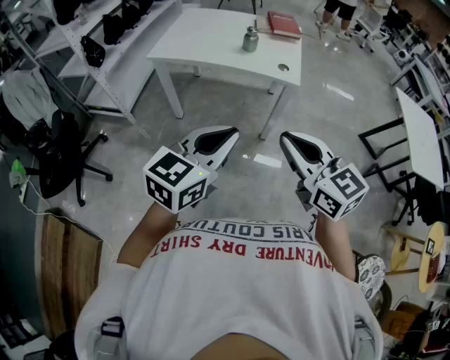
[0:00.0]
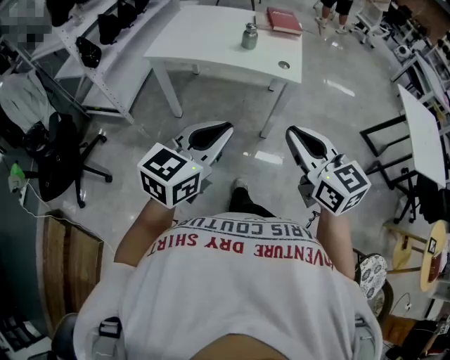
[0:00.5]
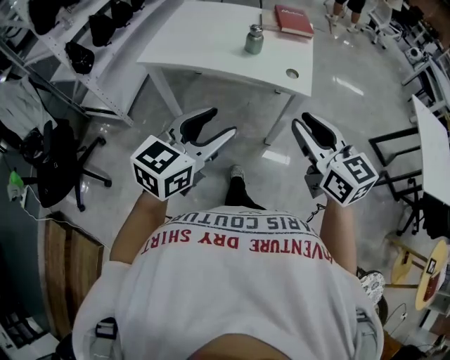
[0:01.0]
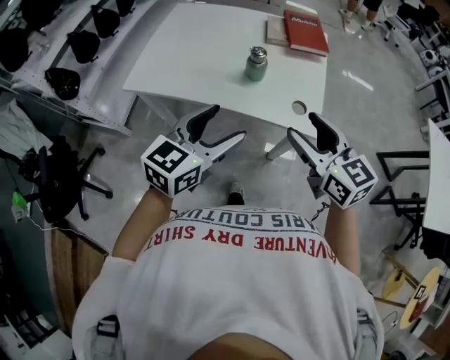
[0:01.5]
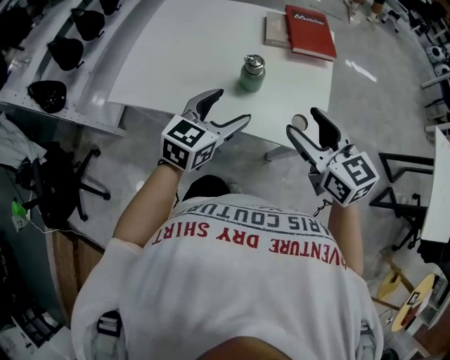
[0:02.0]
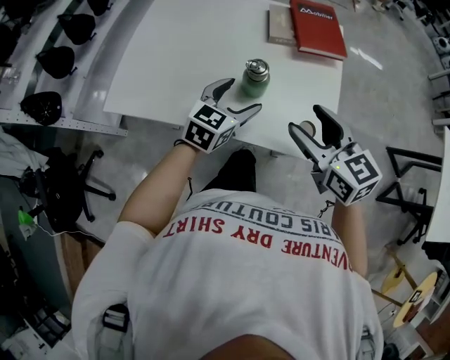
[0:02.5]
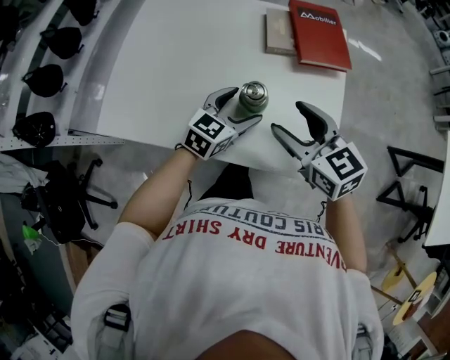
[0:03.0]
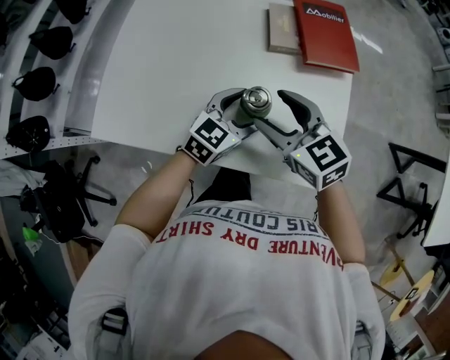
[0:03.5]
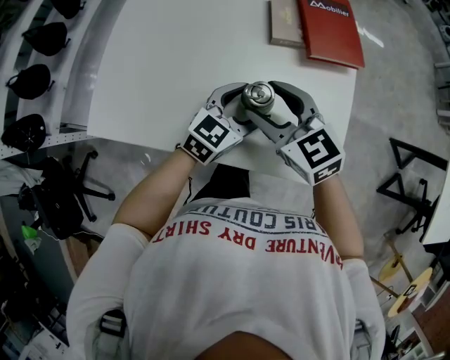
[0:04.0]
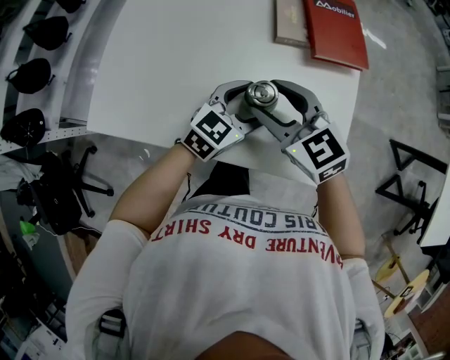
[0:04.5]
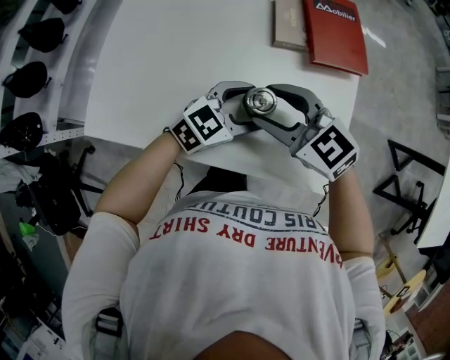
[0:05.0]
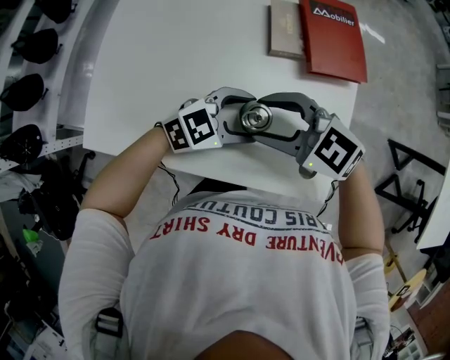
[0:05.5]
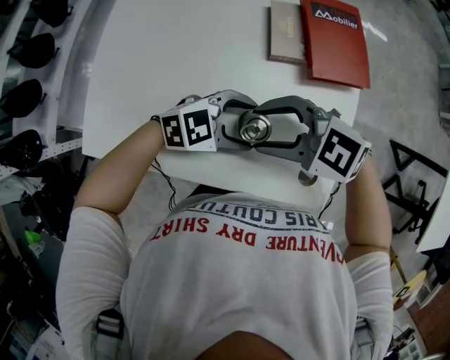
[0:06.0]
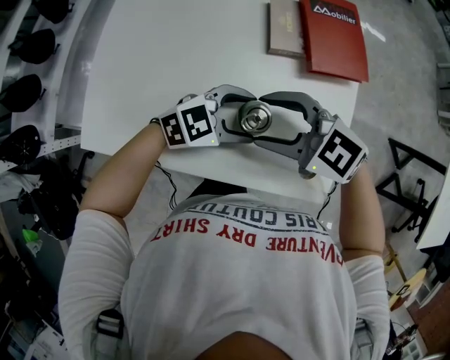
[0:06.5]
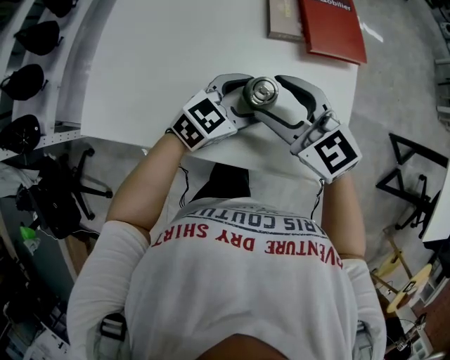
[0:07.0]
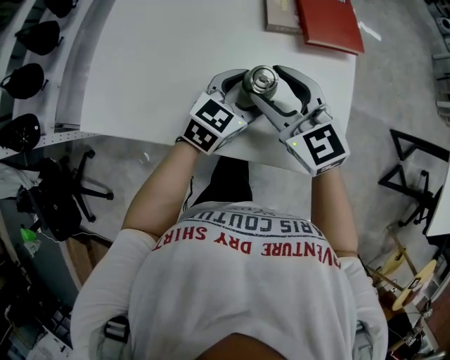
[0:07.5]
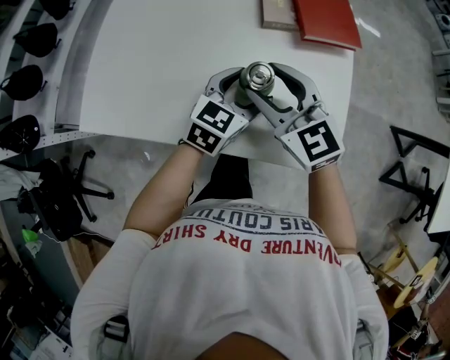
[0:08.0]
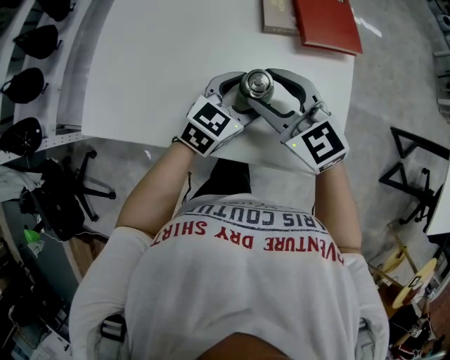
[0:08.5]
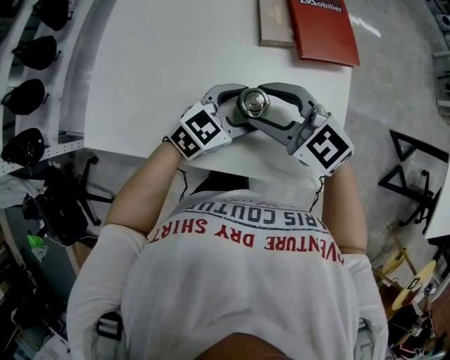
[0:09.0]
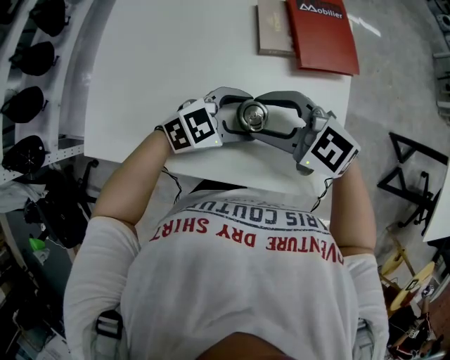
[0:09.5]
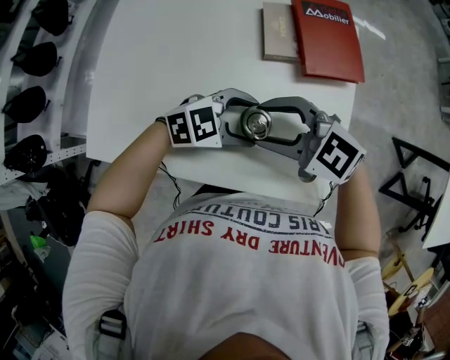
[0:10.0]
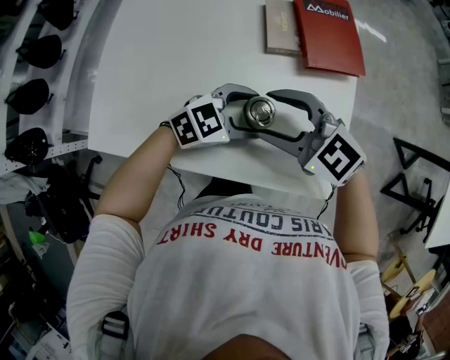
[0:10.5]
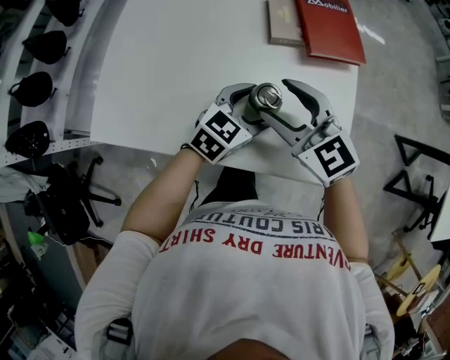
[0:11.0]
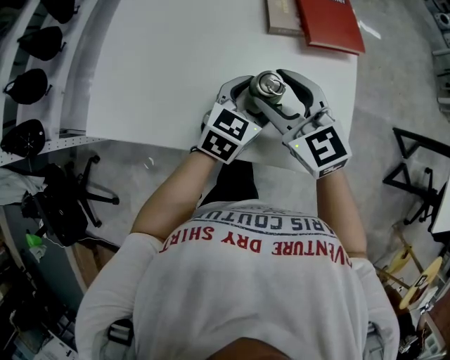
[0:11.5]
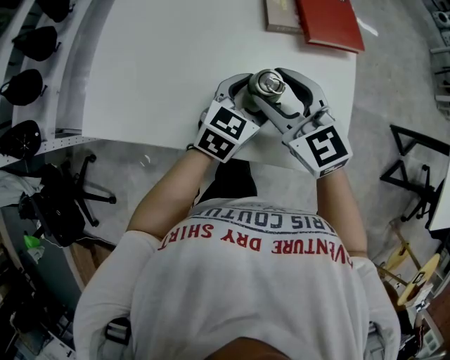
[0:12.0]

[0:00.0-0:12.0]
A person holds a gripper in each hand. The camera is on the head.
0:00.0 to 0:02.0: Both grippers are carried forward, roughly 50 cm. The right gripper opens; the left gripper opens up.
0:02.0 to 0:04.0: The left gripper moves forward and downward, approximately 20 cm. Meanwhile the right gripper heads forward, to the left and downward, covering roughly 20 cm.
0:04.0 to 0:06.0: The right gripper changes its angle by approximately 40 degrees; the left gripper changes its angle by approximately 40 degrees.
0:06.0 to 0:08.0: The left gripper swivels roughly 50 degrees; the right gripper swivels about 50 degrees.
0:08.0 to 0:10.0: The right gripper turns by about 40 degrees; the left gripper turns by some 50 degrees.
0:10.0 to 0:12.0: The right gripper rotates roughly 40 degrees. Meanwhile the left gripper changes its angle by roughly 50 degrees.

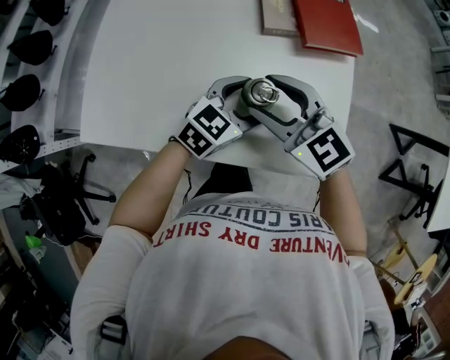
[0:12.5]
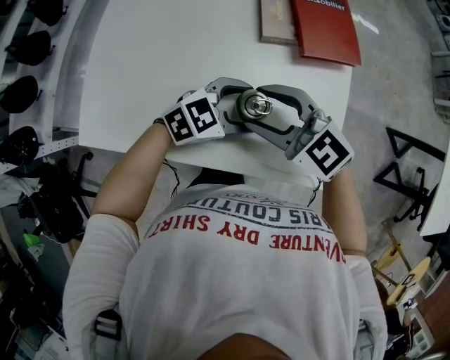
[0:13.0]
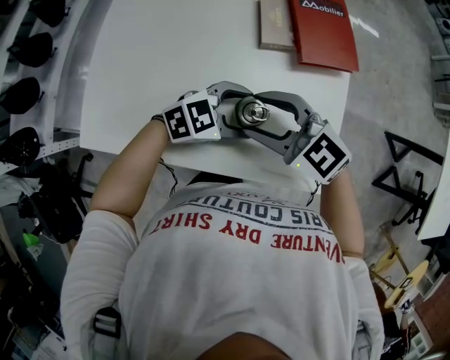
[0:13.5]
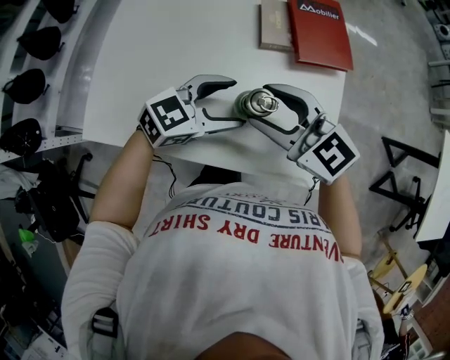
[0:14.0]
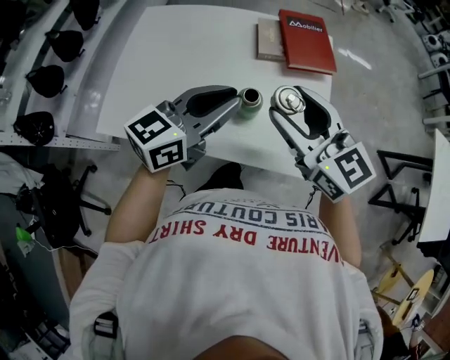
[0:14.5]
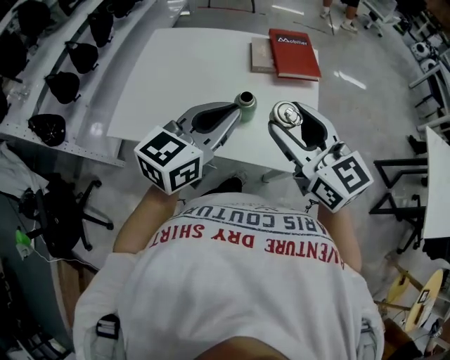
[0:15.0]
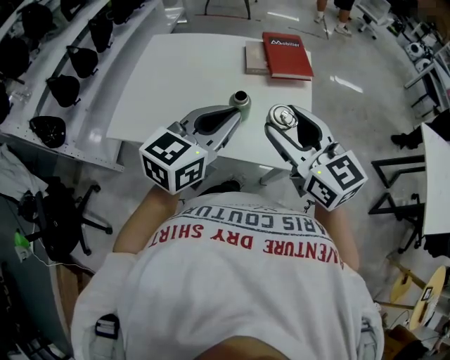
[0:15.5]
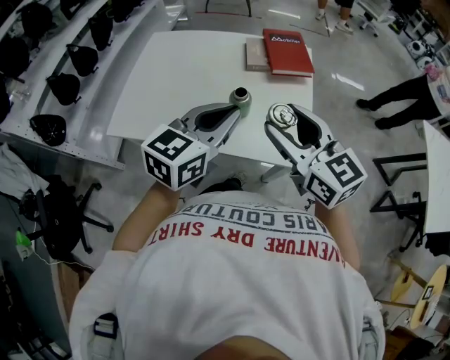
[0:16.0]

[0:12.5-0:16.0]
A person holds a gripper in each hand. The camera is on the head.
0:12.5 to 0:14.5: Both grippers move upward, about 15 cm. The left gripper changes its angle by about 30 degrees, and closes.
0:14.5 to 0:16.0: Both grippers travel together backward, approximately 10 cm.

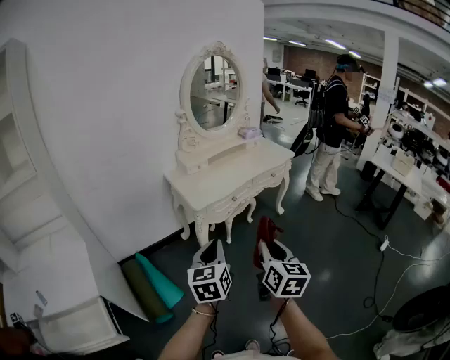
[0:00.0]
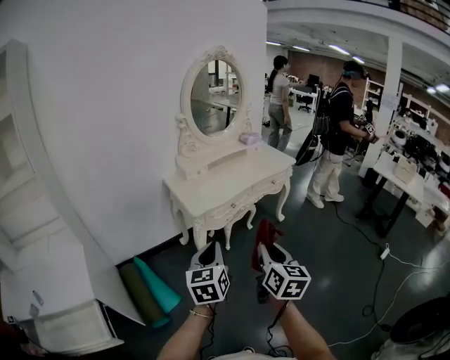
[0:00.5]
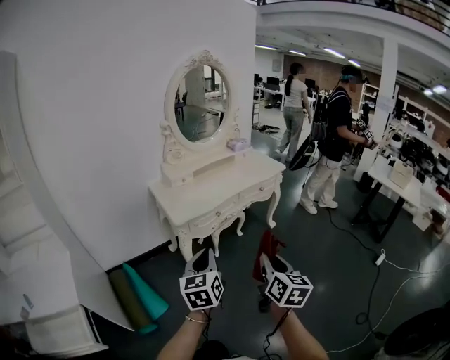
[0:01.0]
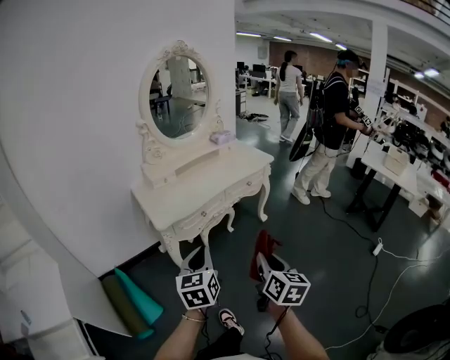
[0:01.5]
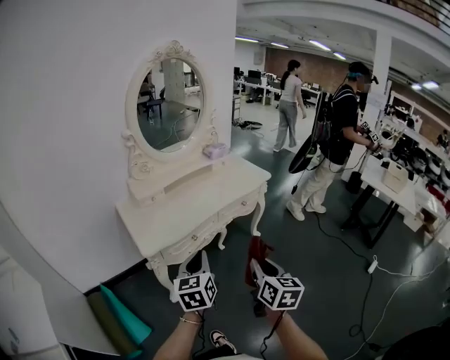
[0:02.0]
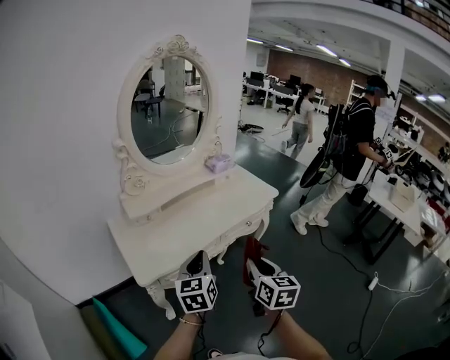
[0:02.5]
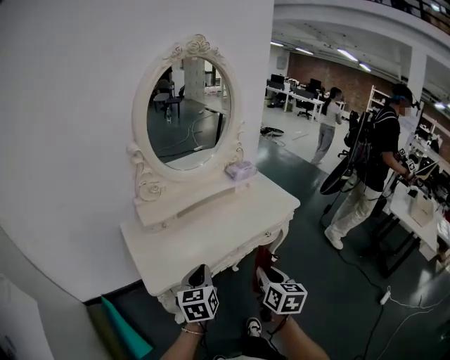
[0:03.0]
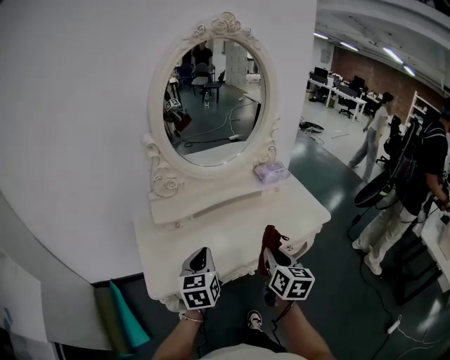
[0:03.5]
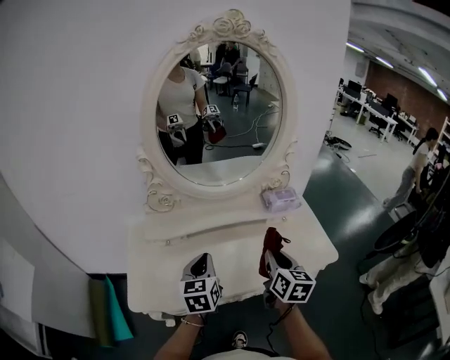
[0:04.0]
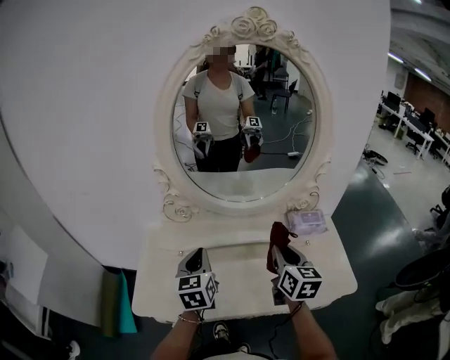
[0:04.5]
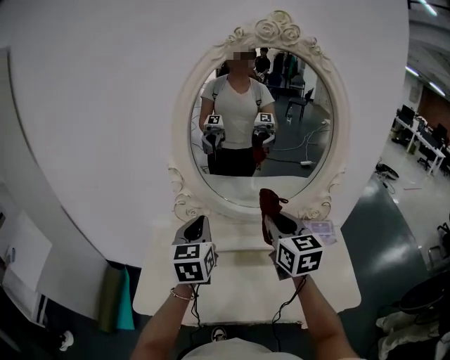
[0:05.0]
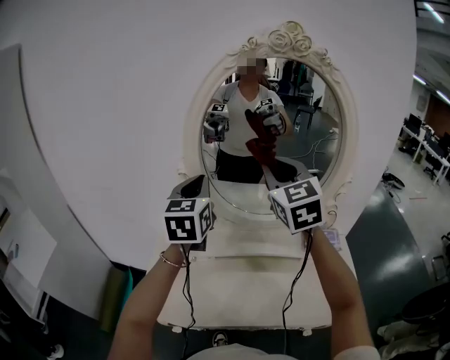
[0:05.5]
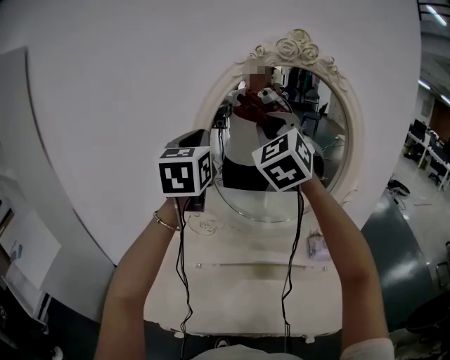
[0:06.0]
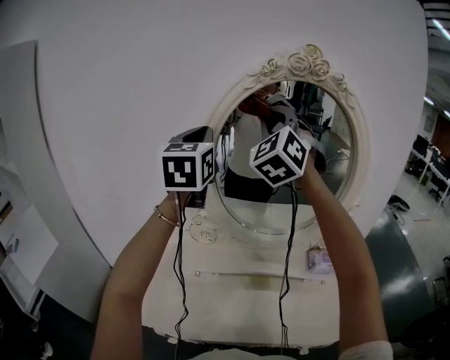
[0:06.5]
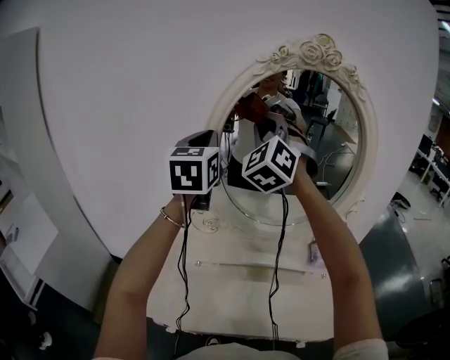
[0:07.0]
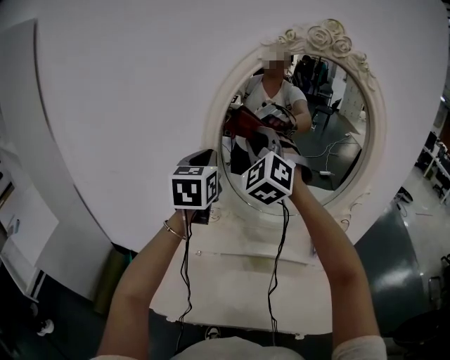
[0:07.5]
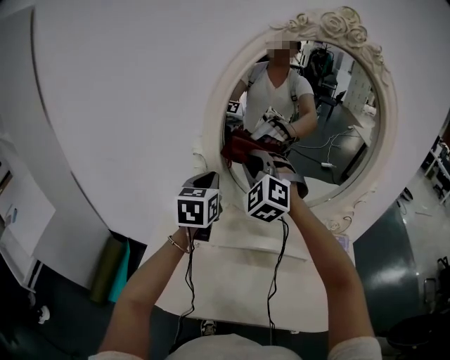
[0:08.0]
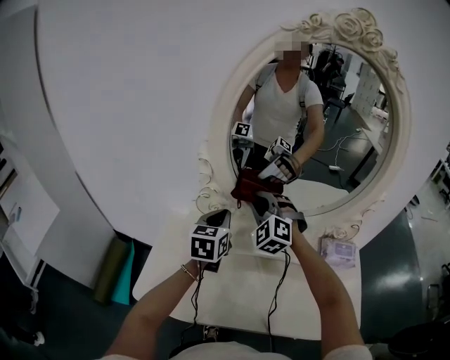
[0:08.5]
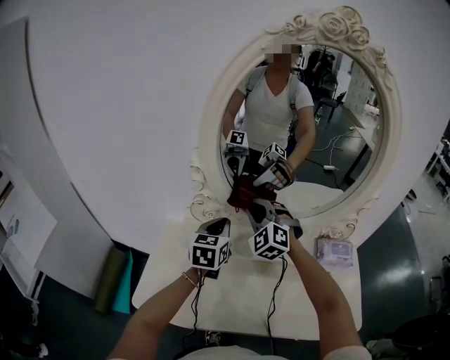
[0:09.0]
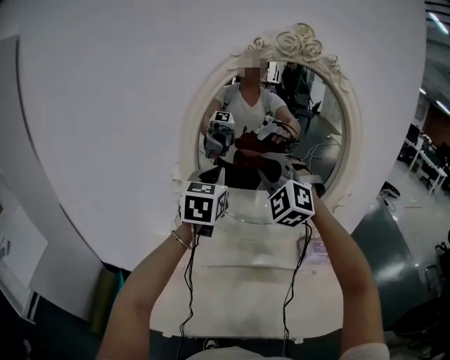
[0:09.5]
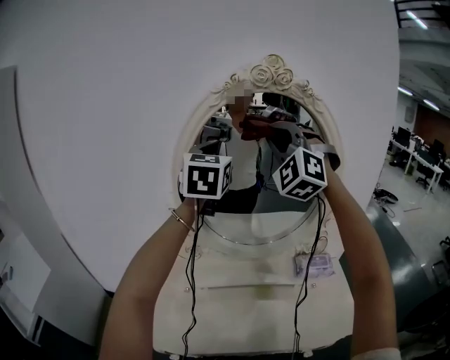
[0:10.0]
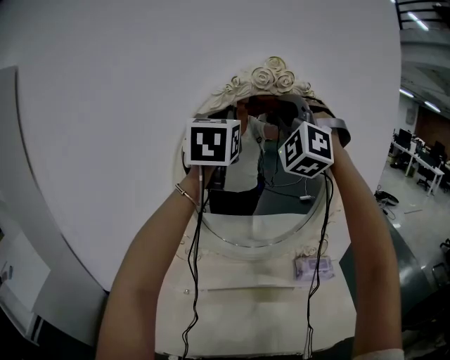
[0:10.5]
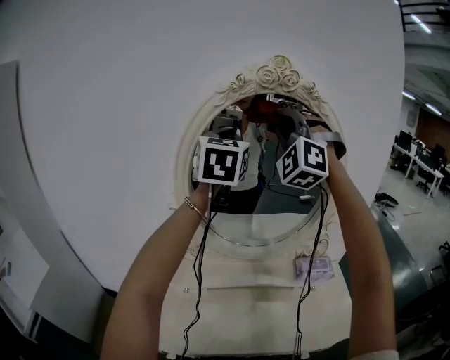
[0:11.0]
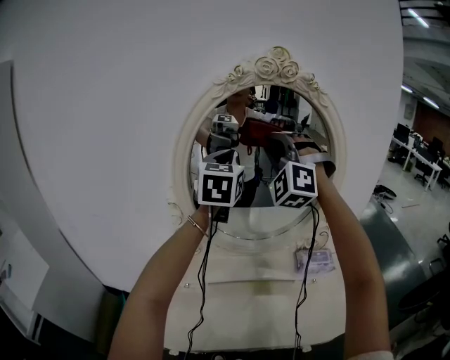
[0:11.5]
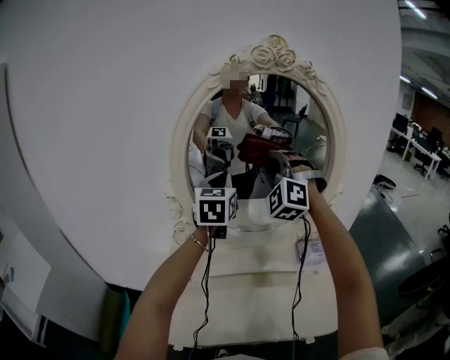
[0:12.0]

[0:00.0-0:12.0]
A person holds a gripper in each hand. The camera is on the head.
0:00.0 to 0:02.0: The two grippers go approximately 30 cm forward and to the right.
0:02.0 to 0:04.0: Both grippers are carried forward, about 50 cm. The left gripper turns by some 30 degrees. The right gripper swivels some 20 degrees.
0:04.0 to 0:06.0: Both grippers travel together upward and forward, some 50 cm. The right gripper twists approximately 70 degrees counterclockwise, seen from behind. The left gripper changes its angle by about 30 degrees.
0:06.0 to 0:08.0: Both grippers move downward, approximately 20 cm. The right gripper turns by roughly 30 degrees.
0:08.0 to 0:10.0: Both grippers travel together upward and to the right, roughly 30 cm. The left gripper changes its angle by roughly 20 degrees. Meanwhile the right gripper turns by approximately 20 degrees.
0:10.0 to 0:12.0: The two grippers go about 15 cm downward.
